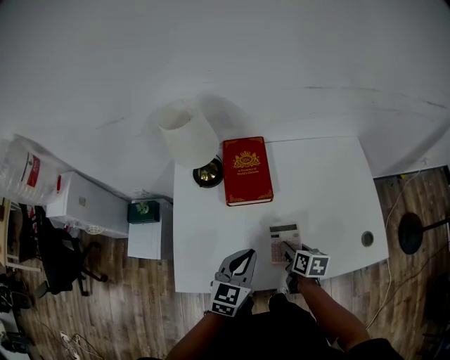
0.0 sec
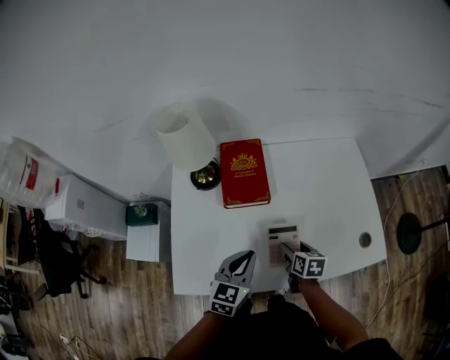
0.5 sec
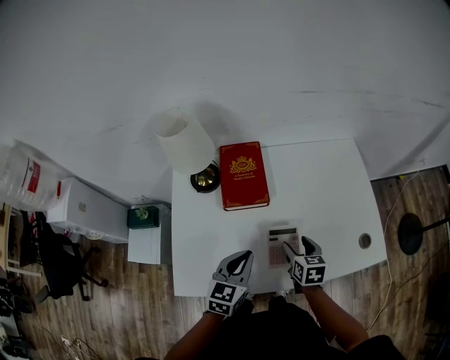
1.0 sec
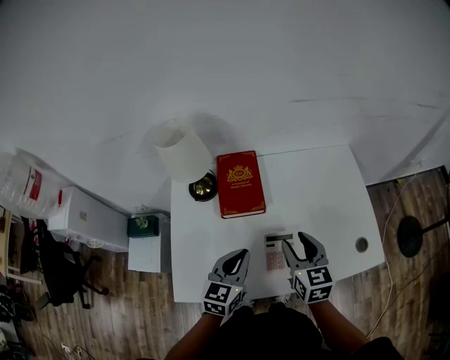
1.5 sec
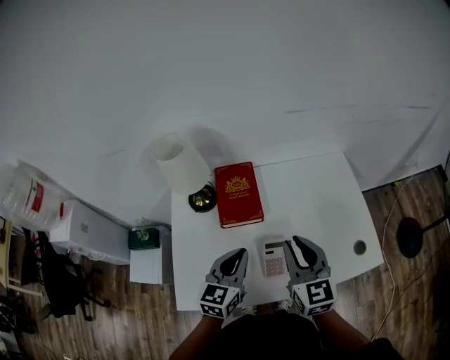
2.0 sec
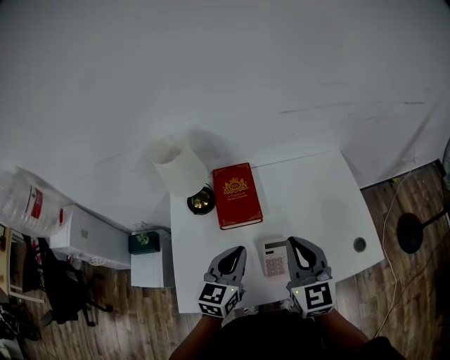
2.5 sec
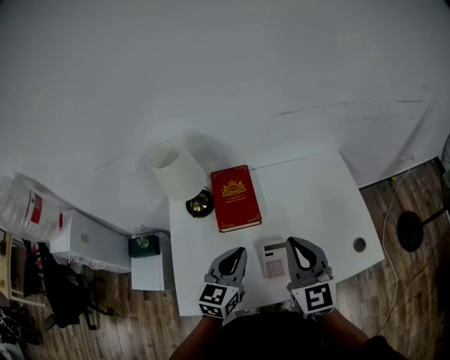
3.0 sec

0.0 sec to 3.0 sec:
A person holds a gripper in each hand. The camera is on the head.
0.0 sec to 1.5 sec: The right gripper moves upward, roughly 20 cm, and changes its angle by some 40 degrees.
1.5 sec to 3.0 sec: The right gripper heads upward, covering about 10 cm, changes its angle by roughly 20 degrees, and closes its fingers. The left gripper moves upward, roughly 5 cm.

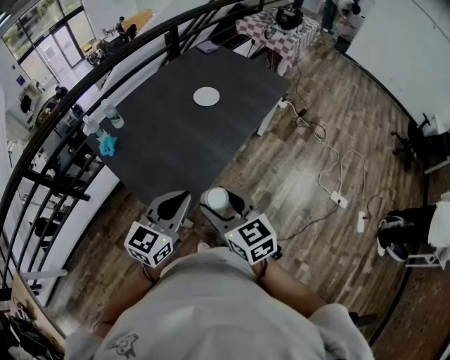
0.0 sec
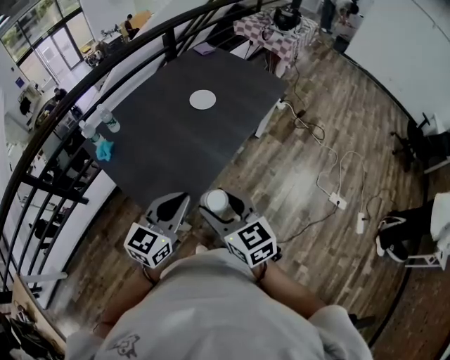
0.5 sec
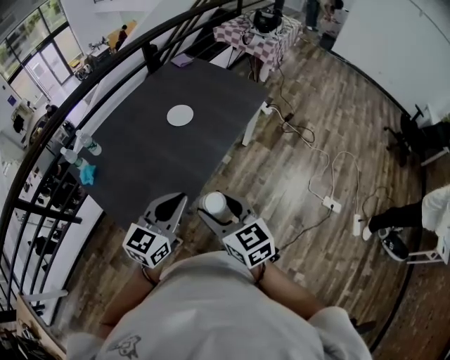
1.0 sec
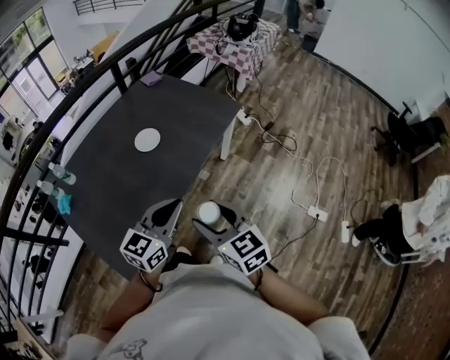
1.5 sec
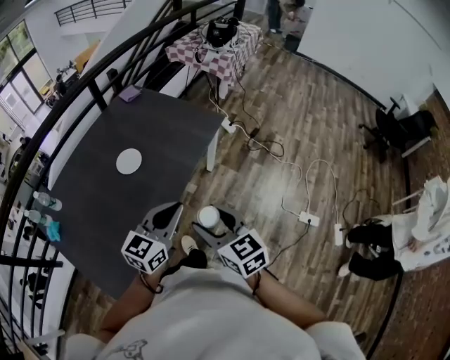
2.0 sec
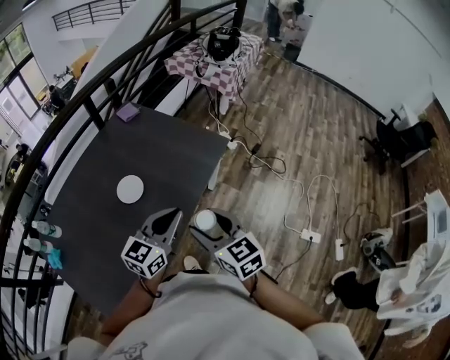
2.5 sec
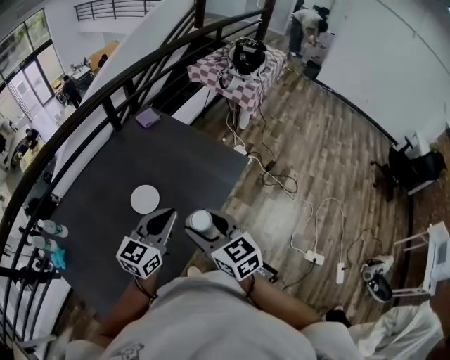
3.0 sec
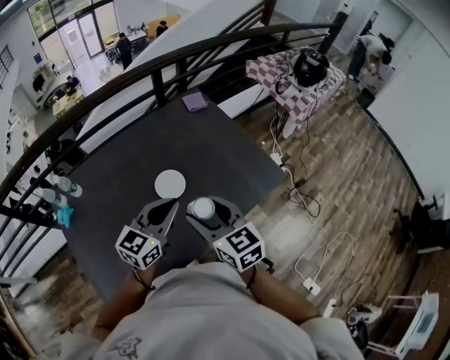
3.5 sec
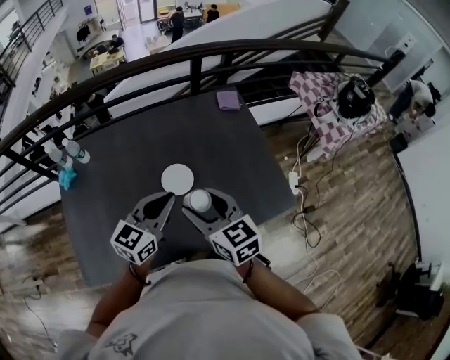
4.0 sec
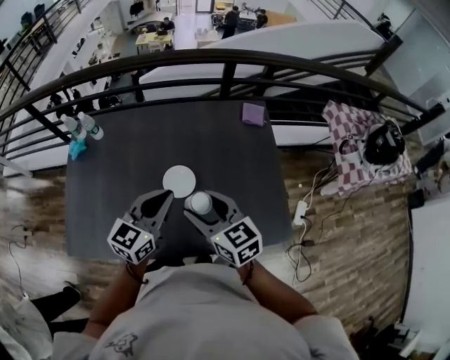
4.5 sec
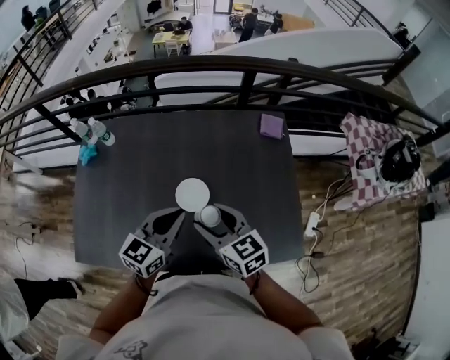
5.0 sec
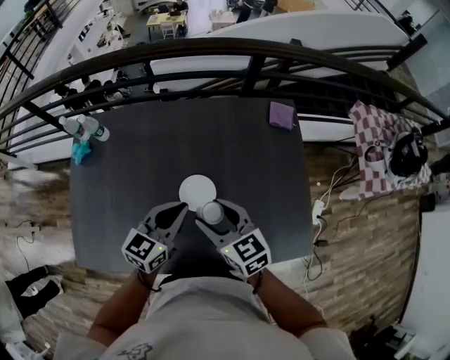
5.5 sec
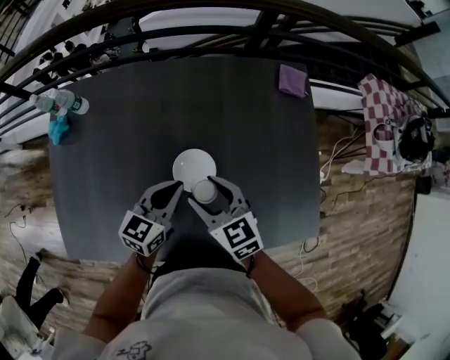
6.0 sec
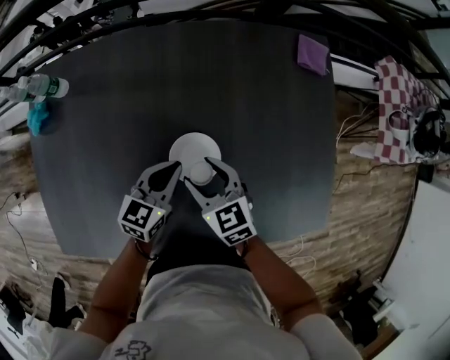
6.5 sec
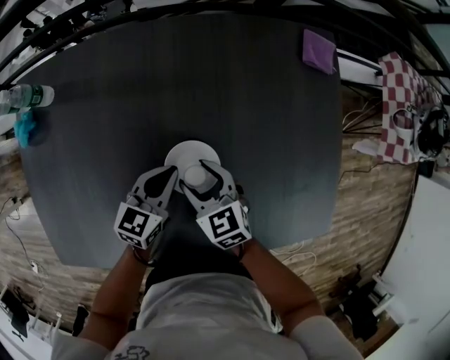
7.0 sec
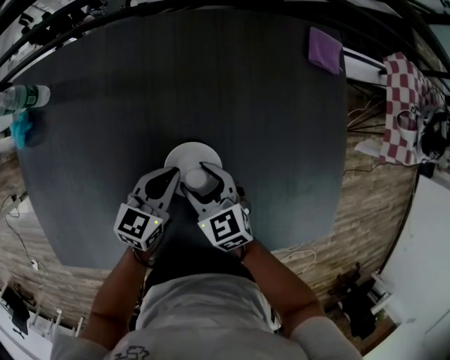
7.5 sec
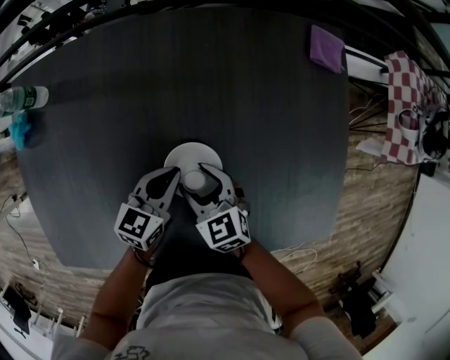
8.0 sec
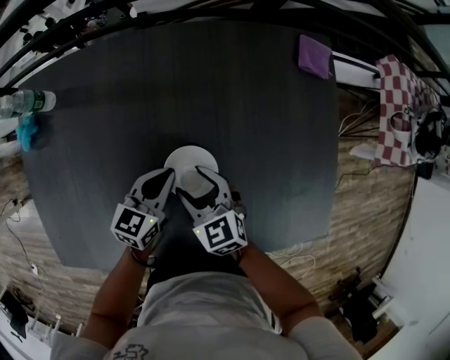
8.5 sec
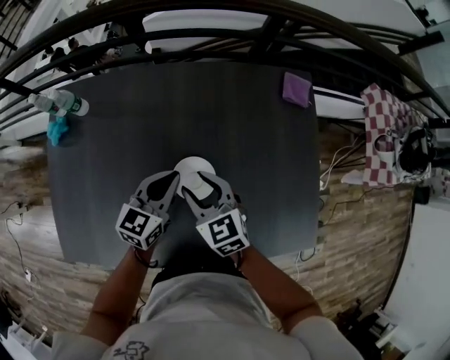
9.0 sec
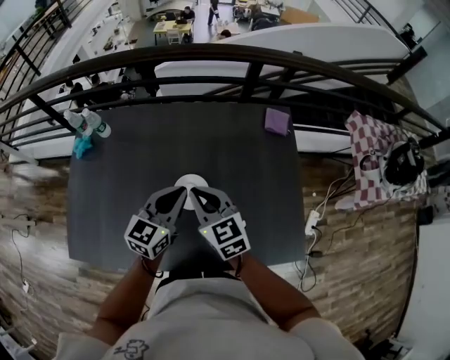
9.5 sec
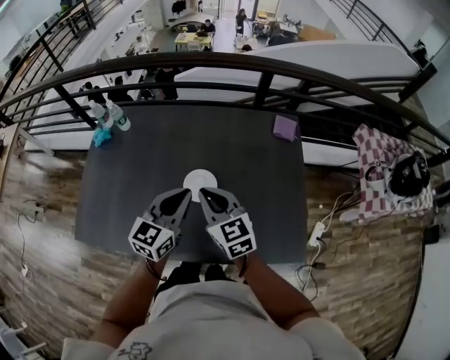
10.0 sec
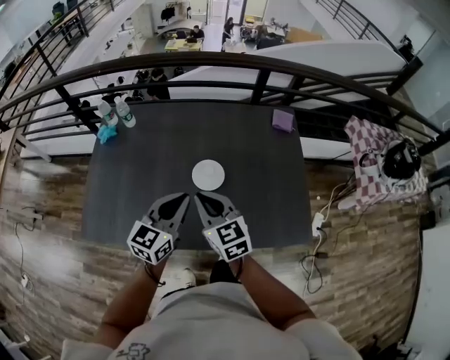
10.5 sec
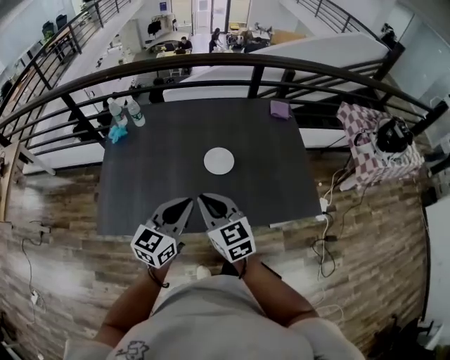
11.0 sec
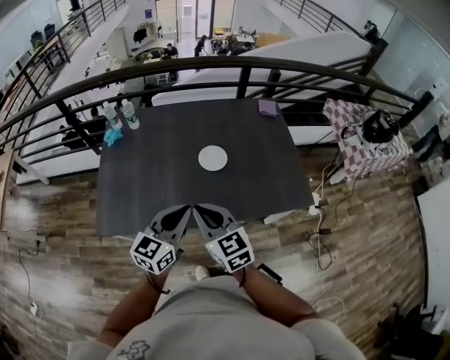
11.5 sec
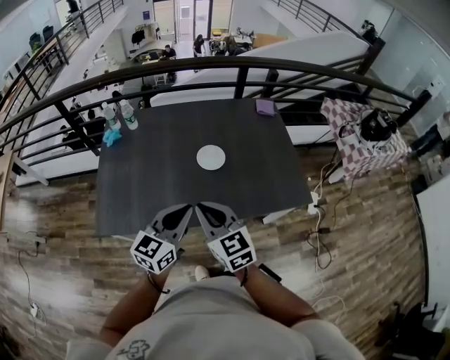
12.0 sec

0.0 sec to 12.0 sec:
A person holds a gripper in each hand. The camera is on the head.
0.0 sec to 2.0 sec: The two grippers travel together, to the right and forward, some 40 cm.
2.0 sec to 4.0 sec: The right gripper shifts by about 40 cm, and changes its angle by approximately 40 degrees, while the left gripper moves some 40 cm, and rotates about 40 degrees.
4.0 sec to 6.0 sec: The grippers both shift downward and forward by about 25 cm. The left gripper rotates about 20 degrees.
6.0 sec to 8.0 sec: The grippers both shift downward by about 20 cm.
8.0 sec to 10.0 sec: The two grippers go approximately 35 cm upward and backward. The right gripper changes its angle by some 20 degrees, and closes up; the left gripper rotates roughly 30 degrees.
10.0 sec to 12.0 sec: Both grippers move backward, about 30 cm.

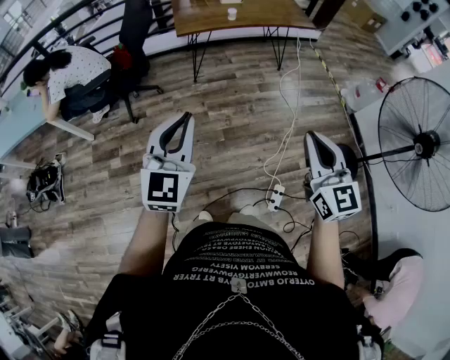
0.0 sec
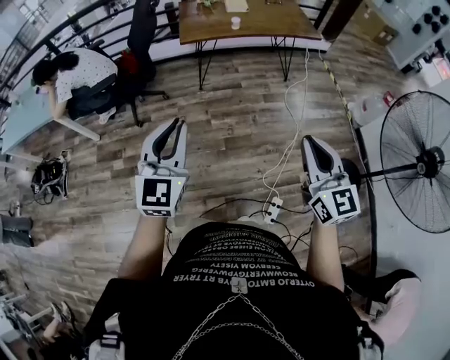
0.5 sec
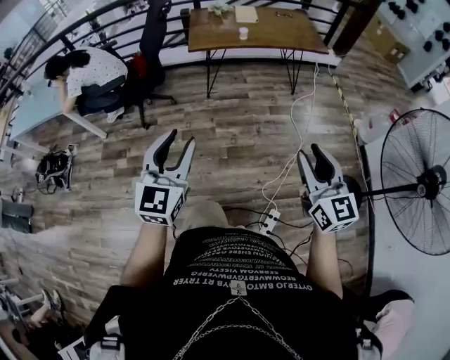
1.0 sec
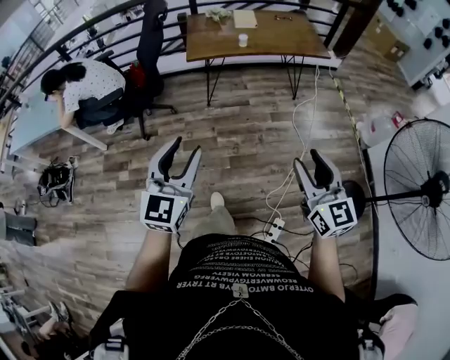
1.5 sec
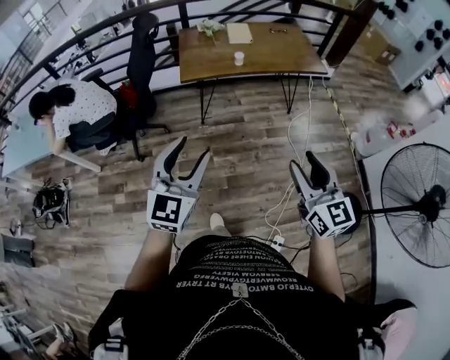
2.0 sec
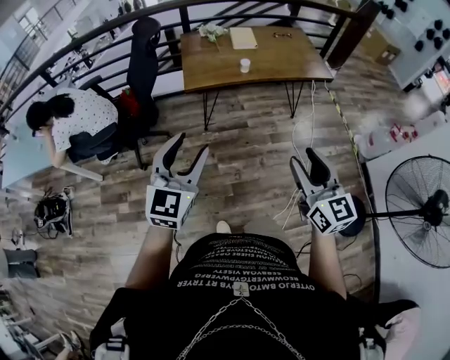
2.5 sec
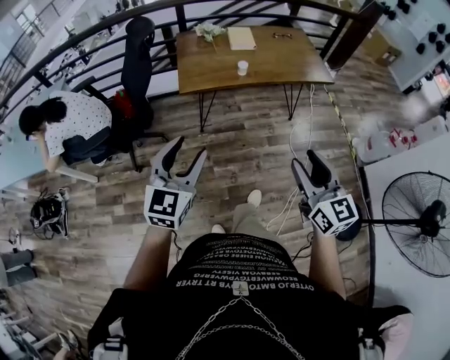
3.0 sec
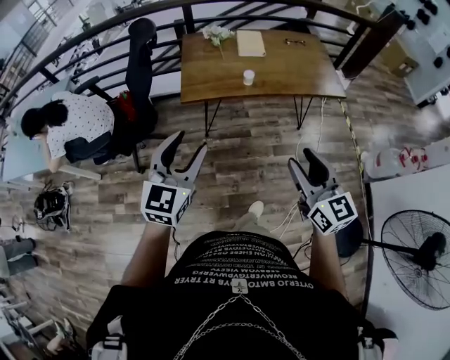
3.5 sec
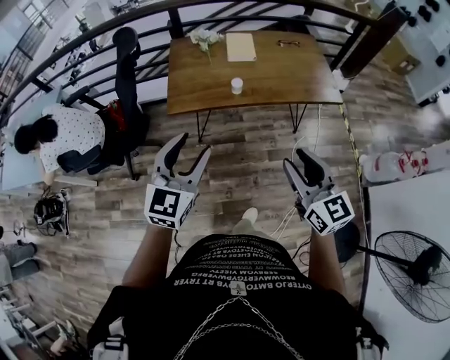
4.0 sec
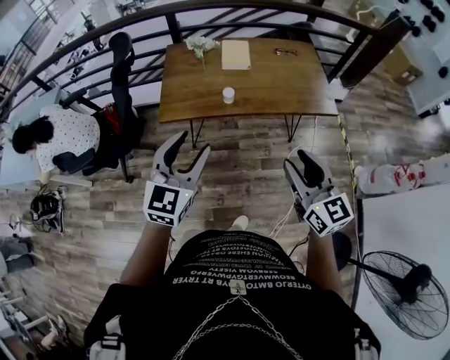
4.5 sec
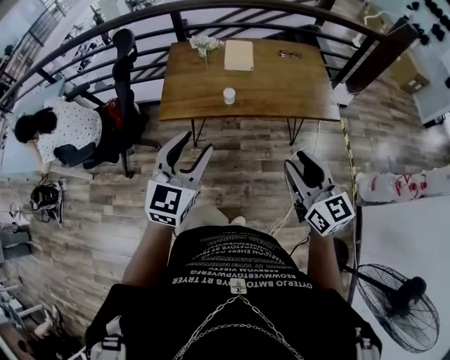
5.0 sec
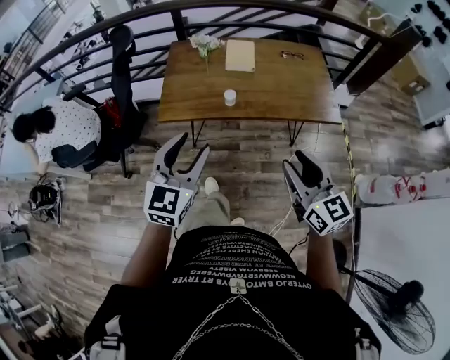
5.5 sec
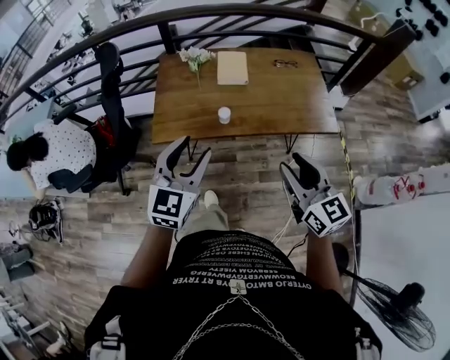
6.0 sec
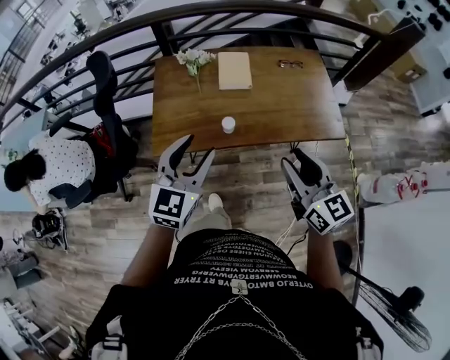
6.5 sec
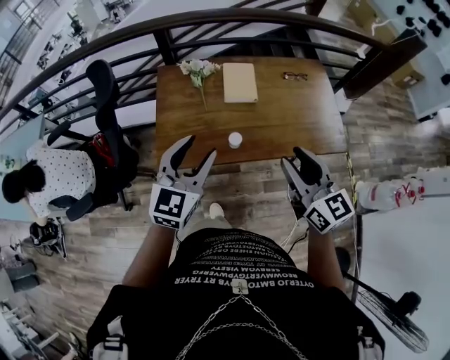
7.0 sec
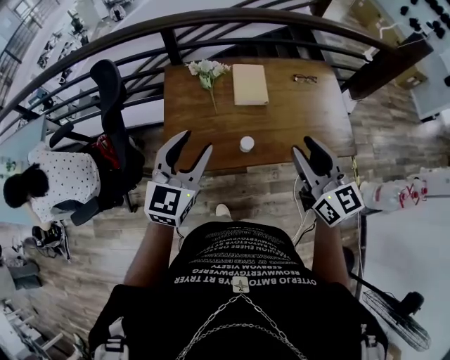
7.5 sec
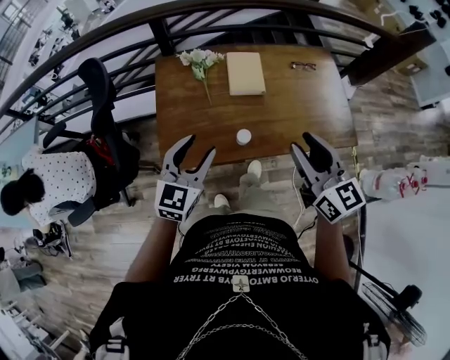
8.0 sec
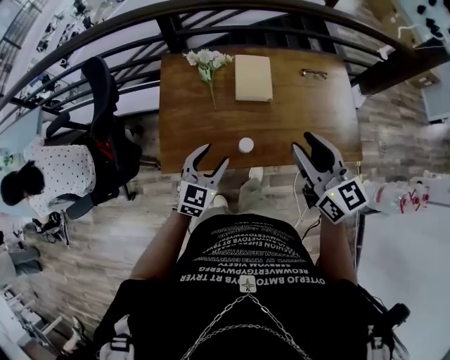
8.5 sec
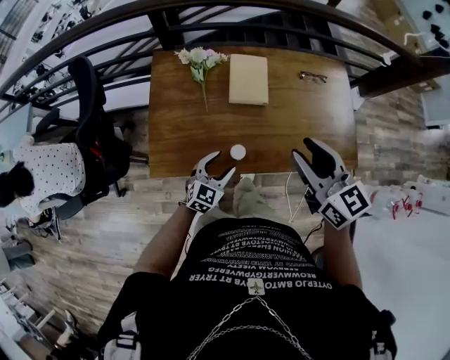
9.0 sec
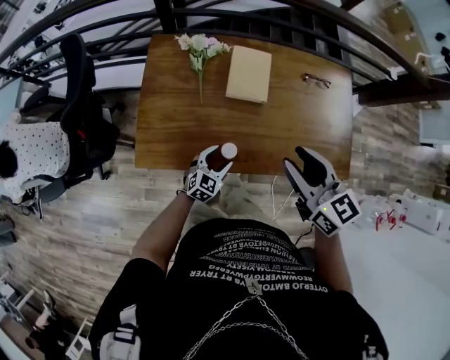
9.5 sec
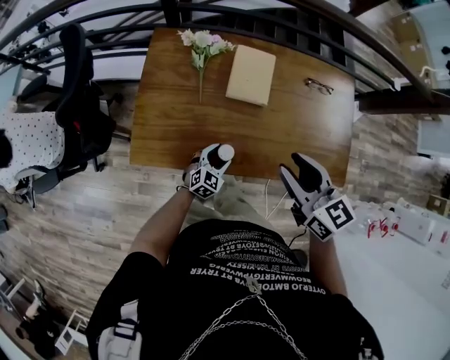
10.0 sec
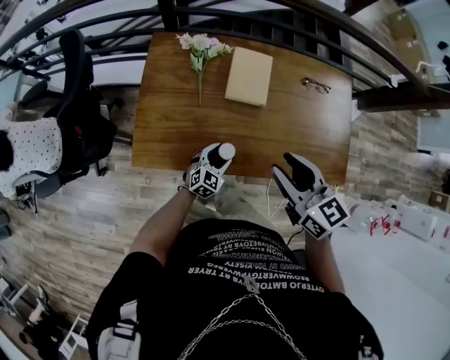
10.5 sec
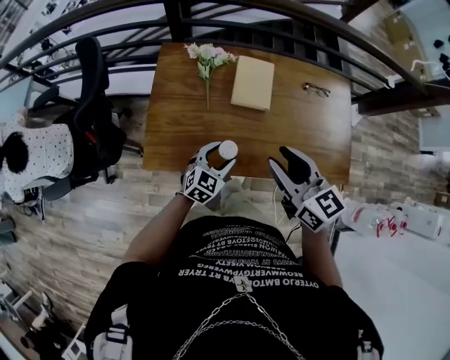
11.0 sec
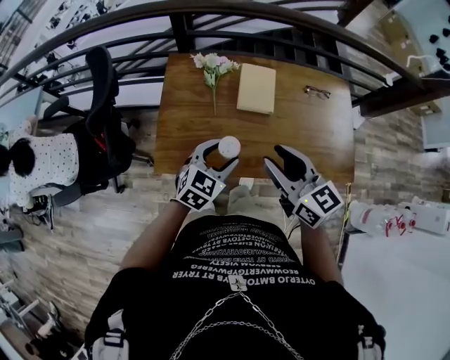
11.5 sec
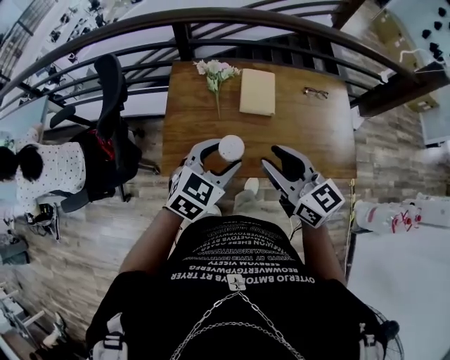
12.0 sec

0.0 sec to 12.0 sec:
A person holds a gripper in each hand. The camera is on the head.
0.0 sec to 2.0 sec: The grippers both shift forward by some 20 cm. The left gripper opens; the right gripper opens up.
2.0 sec to 4.0 sec: Both grippers travel together forward, roughly 35 cm.
4.0 sec to 6.0 sec: The two grippers go some 20 cm forward and to the right.
6.0 sec to 8.0 sec: Both grippers travel together forward, about 25 cm.
8.0 sec to 10.0 sec: The right gripper travels forward and downward by approximately 15 cm, and swivels roughly 20 degrees, while the left gripper travels downward and to the right by about 35 cm, and swivels approximately 20 degrees.
10.0 sec to 12.0 sec: The left gripper travels upward by some 30 cm. The right gripper goes roughly 10 cm to the left and backward.
